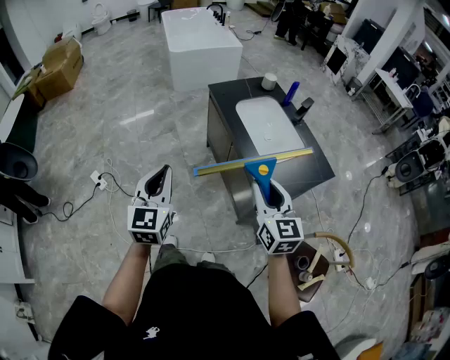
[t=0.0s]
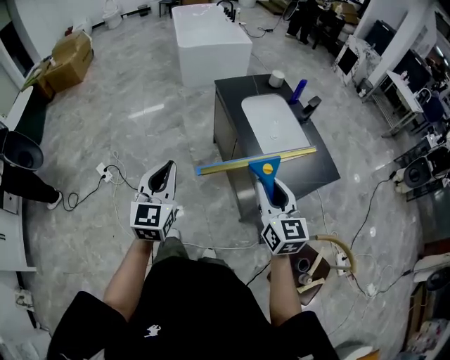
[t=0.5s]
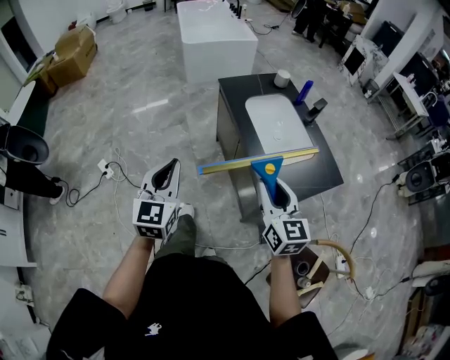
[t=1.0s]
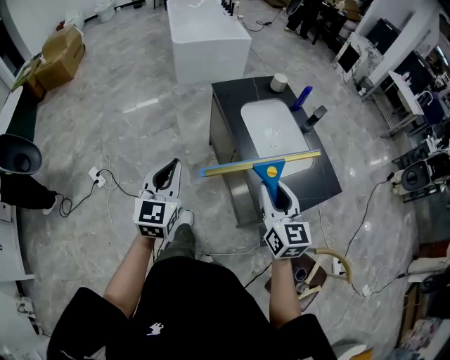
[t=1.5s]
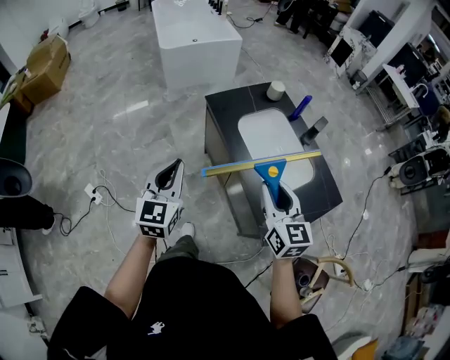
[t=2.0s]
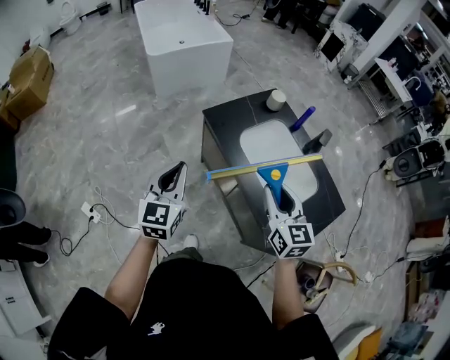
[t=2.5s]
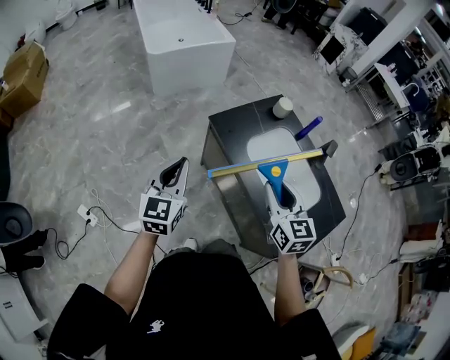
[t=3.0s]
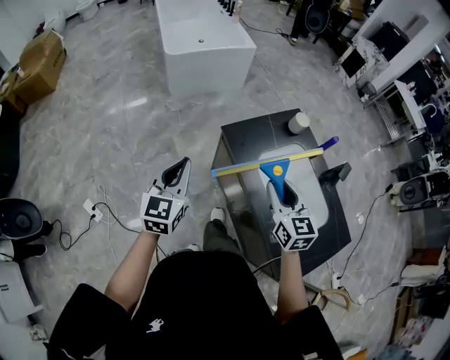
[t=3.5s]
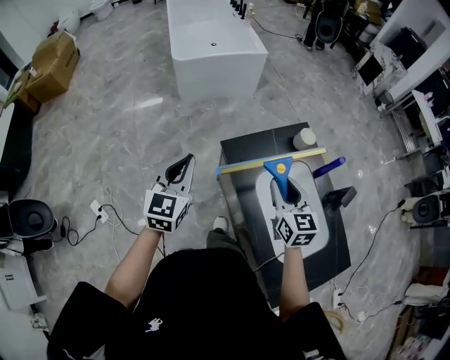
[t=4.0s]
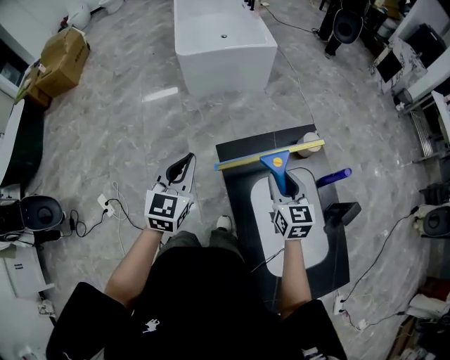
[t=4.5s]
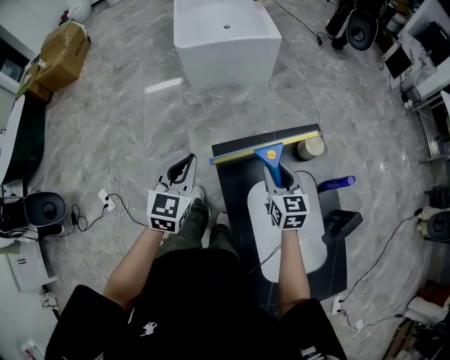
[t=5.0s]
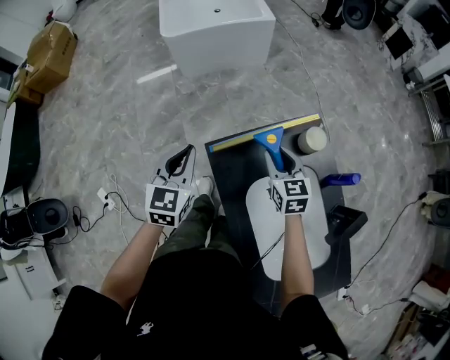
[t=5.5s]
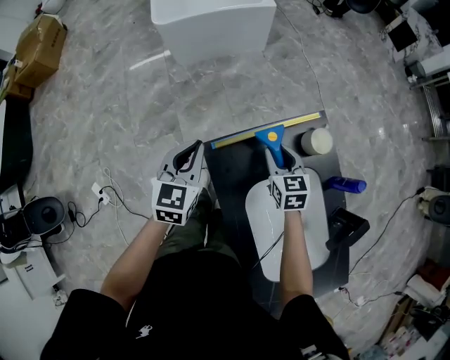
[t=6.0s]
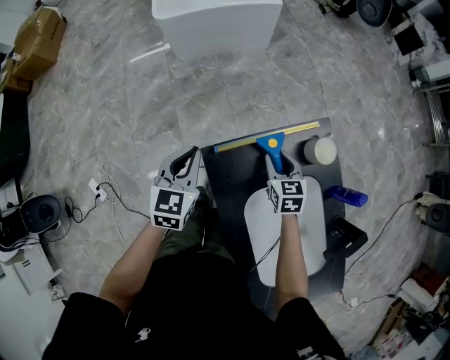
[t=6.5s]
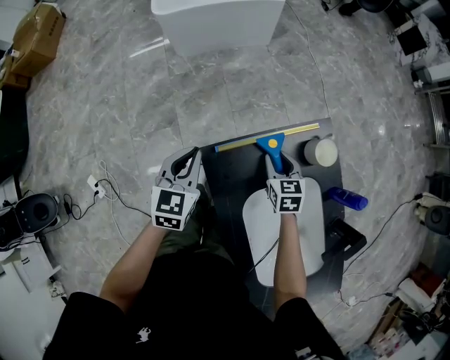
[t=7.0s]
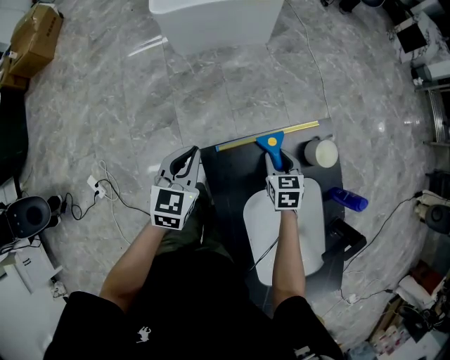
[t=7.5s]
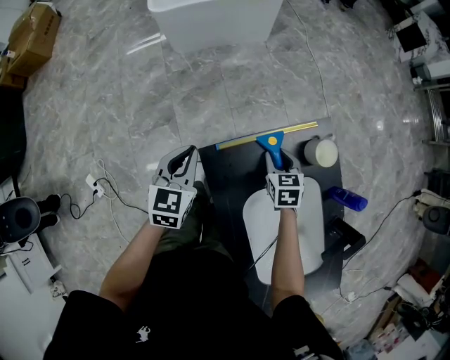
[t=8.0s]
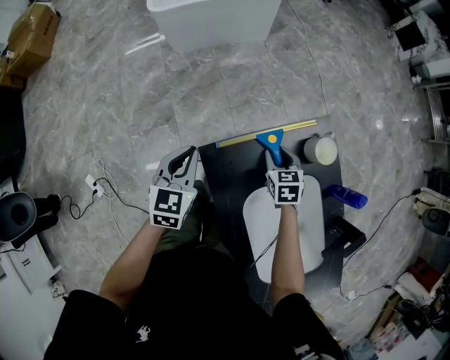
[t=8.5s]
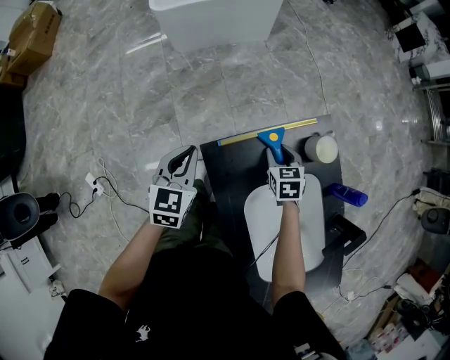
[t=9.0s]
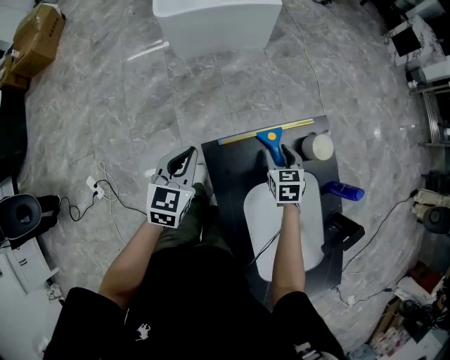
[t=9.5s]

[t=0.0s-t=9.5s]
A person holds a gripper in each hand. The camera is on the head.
t=0.0s to t=2.0s: Both grippers move forward, approximately 20 cm.
t=2.0s to t=4.0s: Both grippers move forward, roughly 30 cm.
t=4.0s to t=5.5s: The right gripper heads forward and downward, covering some 25 cm. The left gripper is displaced forward, downward and to the right by some 20 cm.
t=5.5s to t=7.5s: The left gripper goes about 10 cm downward and forward, while the right gripper moves downward, roughly 10 cm.
t=7.5s to t=9.5s: The grippers move only a little.

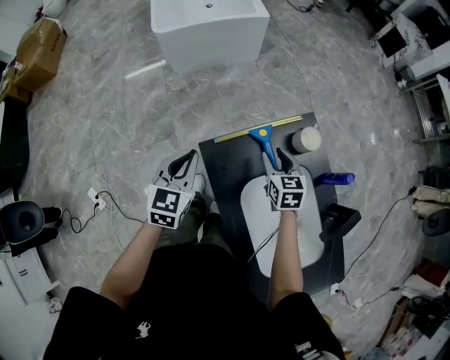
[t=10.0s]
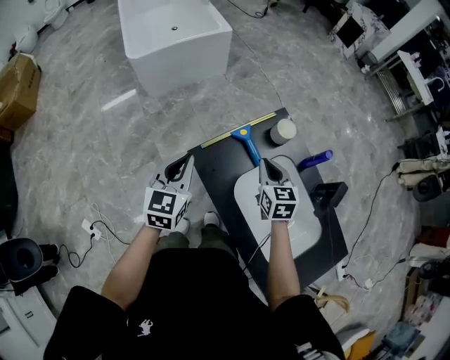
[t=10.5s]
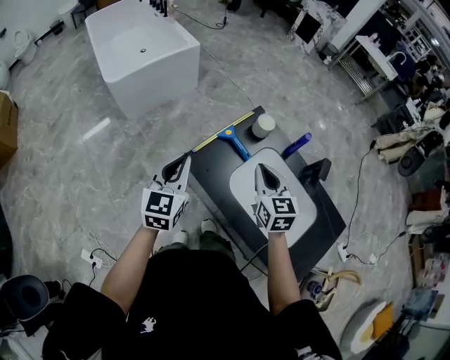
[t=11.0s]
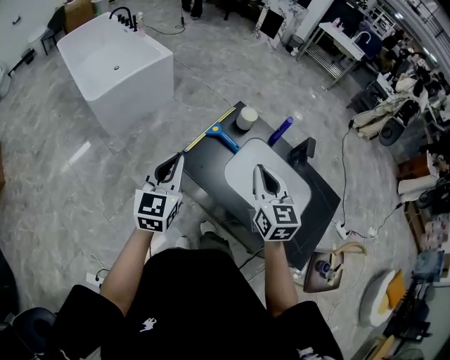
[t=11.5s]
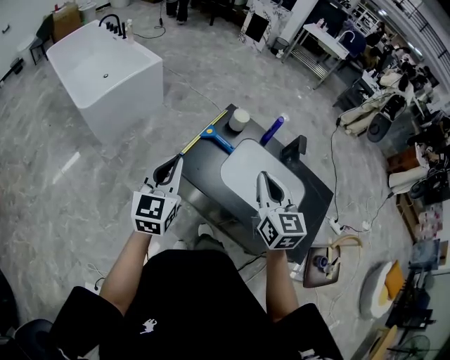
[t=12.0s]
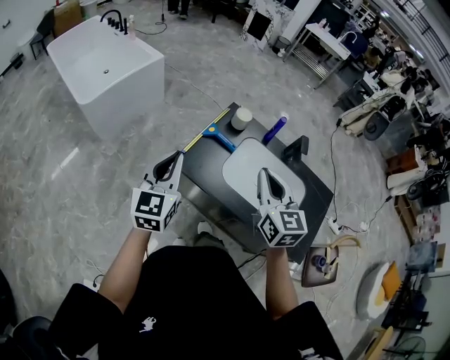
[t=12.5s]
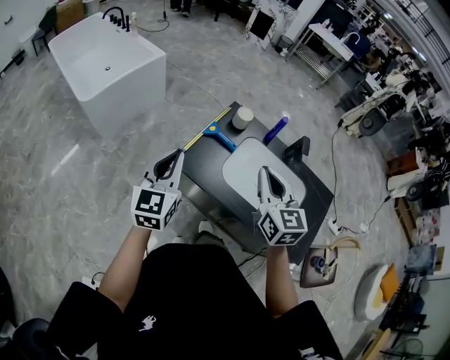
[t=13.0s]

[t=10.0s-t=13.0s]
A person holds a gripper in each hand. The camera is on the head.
t=10.0s to t=11.5s: The left gripper travels upward by approximately 15 cm, and rotates approximately 30 degrees. The right gripper is displaced upward by about 25 cm, rotates roughly 40 degrees, and closes its fingers.
t=11.5s to t=13.0s: The grippers make only small movements.

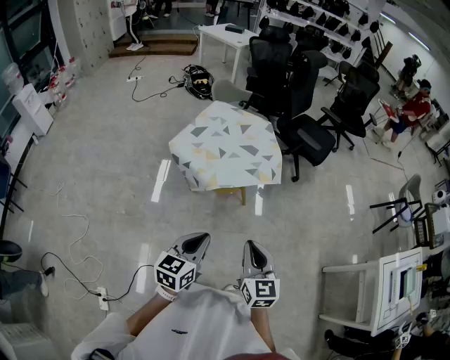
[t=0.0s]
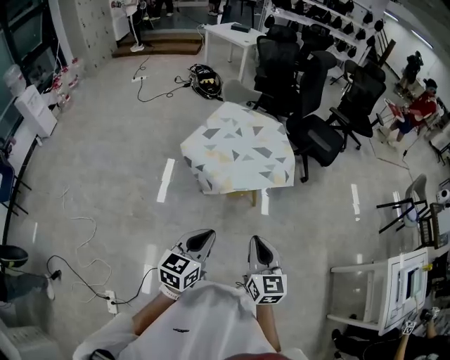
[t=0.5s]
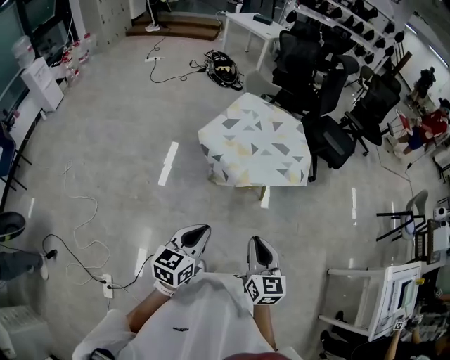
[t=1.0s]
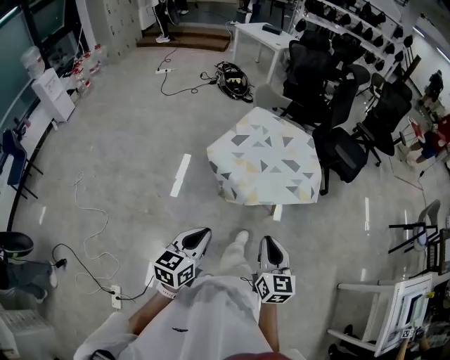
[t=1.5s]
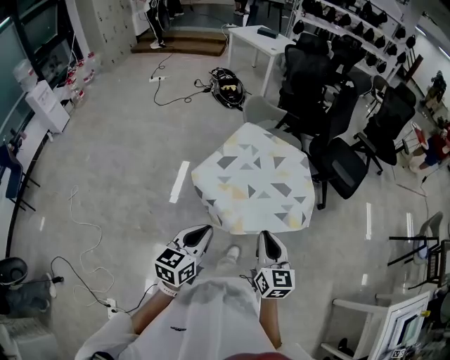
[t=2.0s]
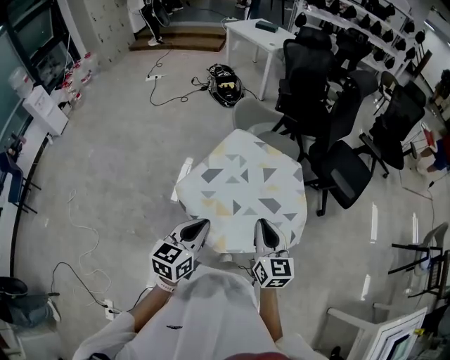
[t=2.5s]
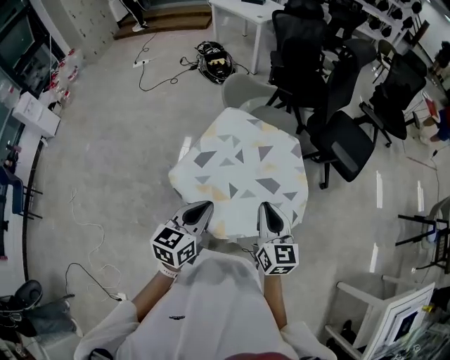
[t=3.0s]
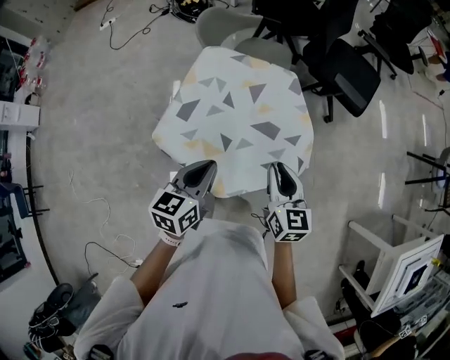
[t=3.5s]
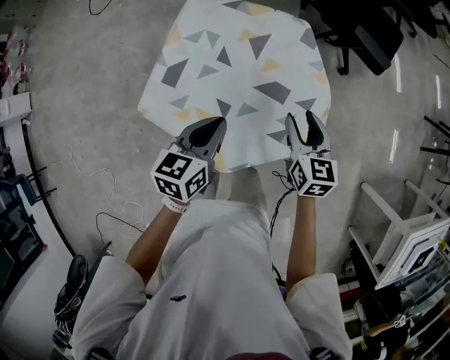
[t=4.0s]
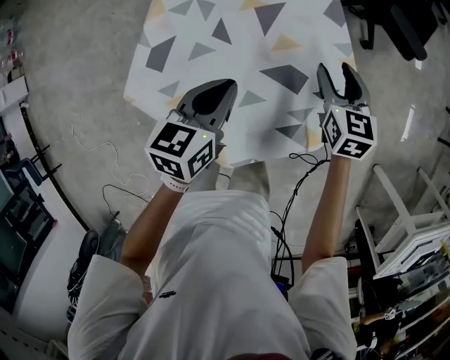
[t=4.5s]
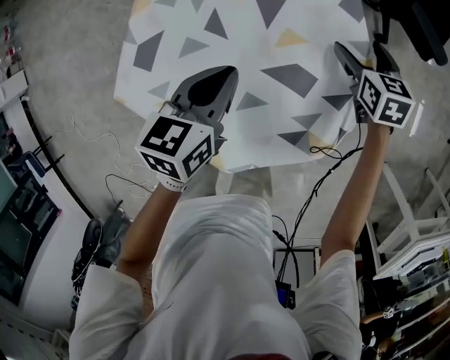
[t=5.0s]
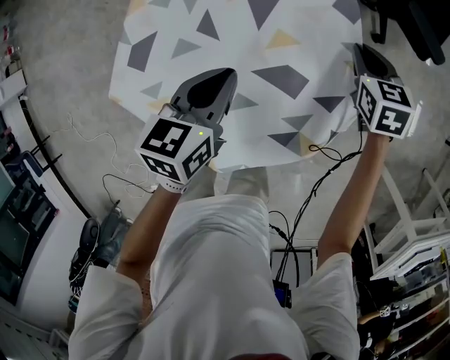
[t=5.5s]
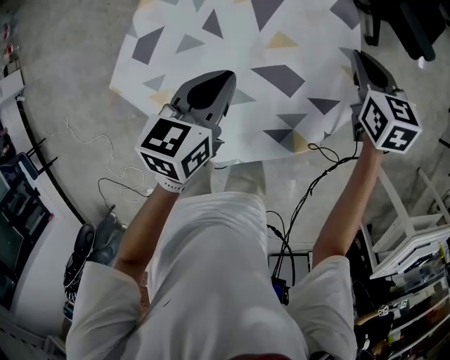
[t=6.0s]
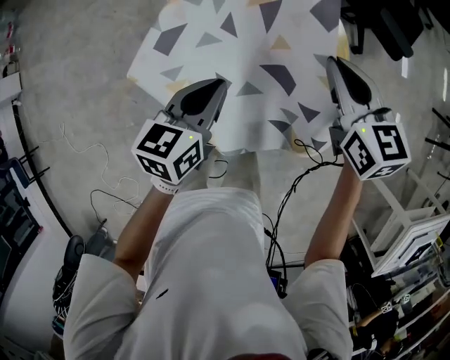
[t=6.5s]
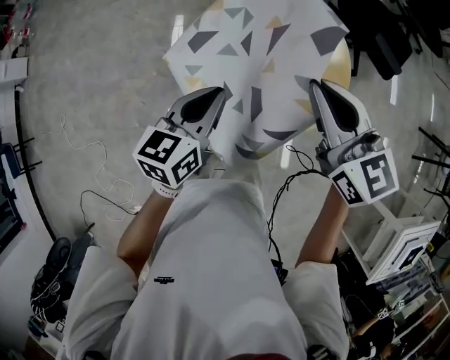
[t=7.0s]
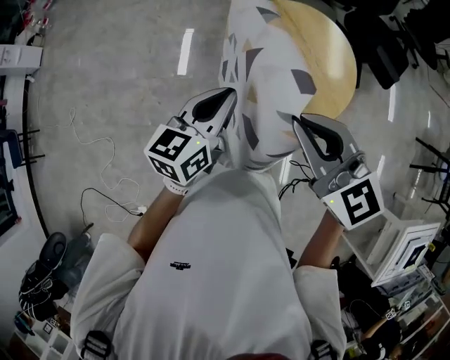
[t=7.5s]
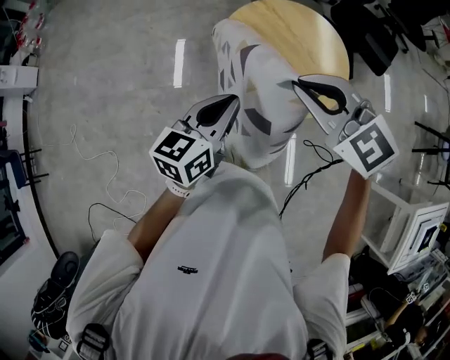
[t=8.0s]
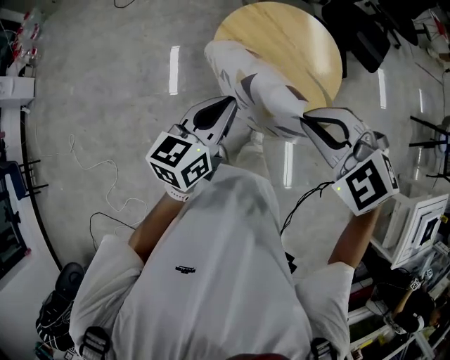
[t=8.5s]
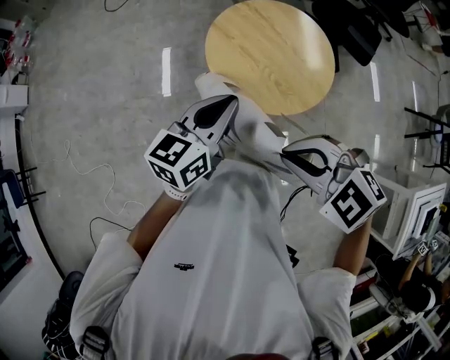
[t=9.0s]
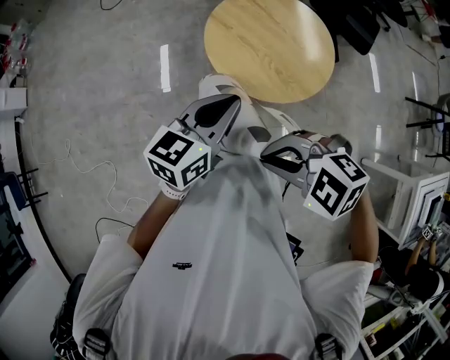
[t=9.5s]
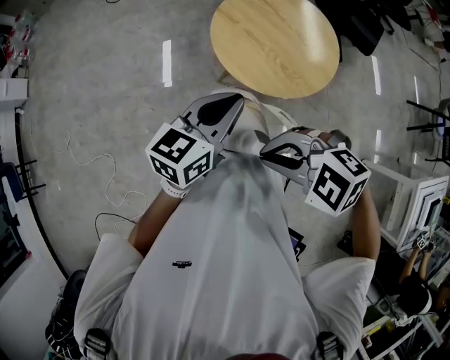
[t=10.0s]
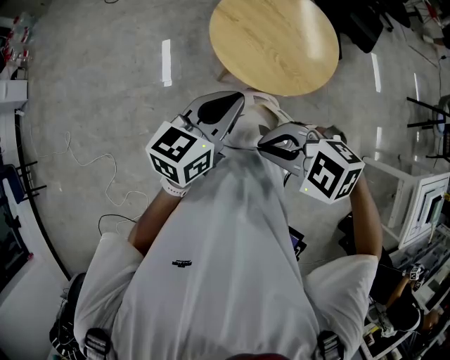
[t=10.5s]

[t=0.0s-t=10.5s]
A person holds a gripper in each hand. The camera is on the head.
t=0.0s to t=2.0s: The right gripper shifts about 25 cm forward. Meanwhile the left gripper heads forward and to the left, covering about 25 cm.
t=2.0s to t=4.0s: The grippers both shift forward, downward and to the right by roughly 35 cm. The left gripper changes its angle by about 20 degrees; the right gripper changes its angle by some 20 degrees, and opens its fingers.
t=4.0s to t=6.5s: The right gripper heads forward, covering approximately 5 cm, moves roughly 20 cm downward and comes back, and closes its fingers; the left gripper travels downward and back again, approximately 10 cm each way.
t=6.5s to t=8.5s: Both grippers travel together to the left, backward and upward, about 40 cm. The right gripper rotates around the line of its fingers by roughly 50 degrees, counterclockwise from behind.
t=8.5s to t=10.5s: The left gripper shifts by approximately 5 cm. Meanwhile the right gripper ends up roughly 20 cm from where it was, and swivels about 20 degrees.

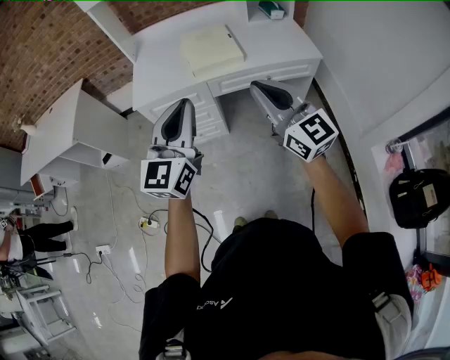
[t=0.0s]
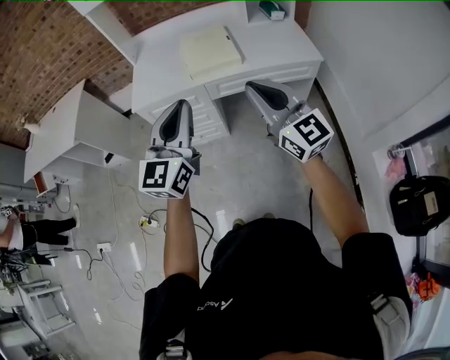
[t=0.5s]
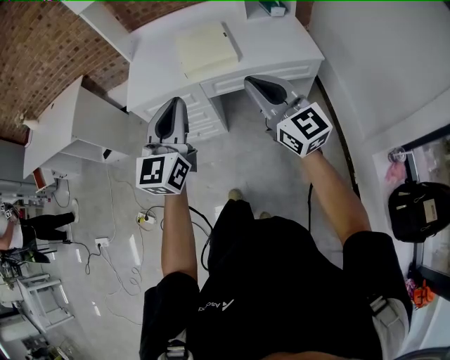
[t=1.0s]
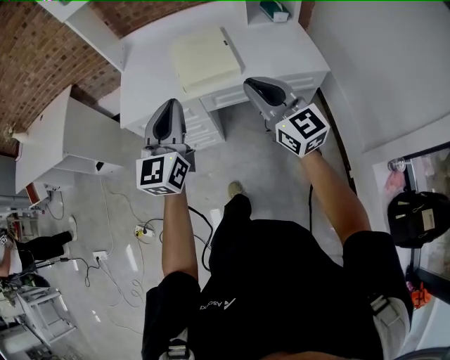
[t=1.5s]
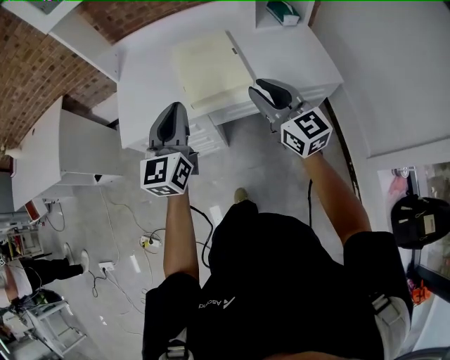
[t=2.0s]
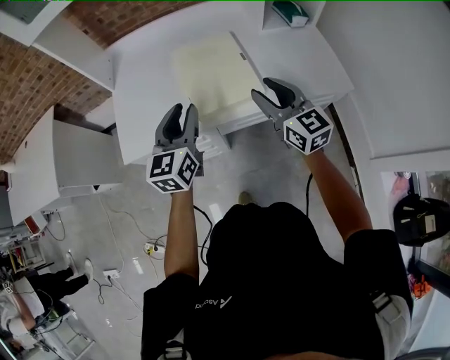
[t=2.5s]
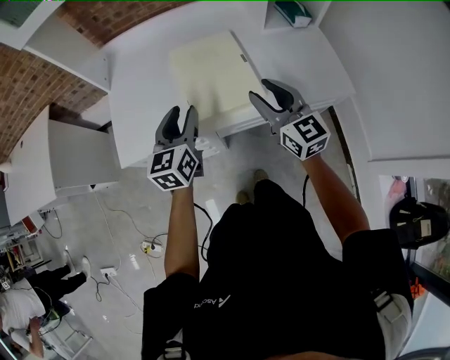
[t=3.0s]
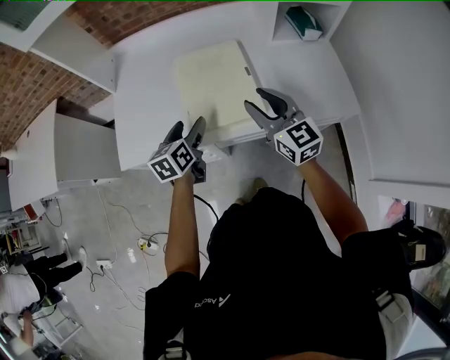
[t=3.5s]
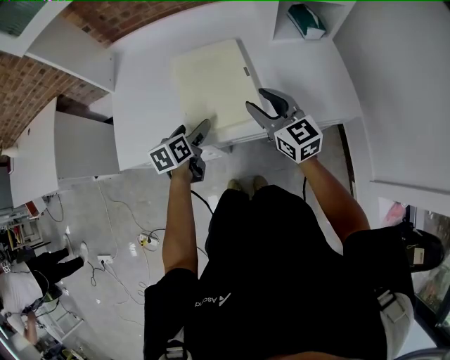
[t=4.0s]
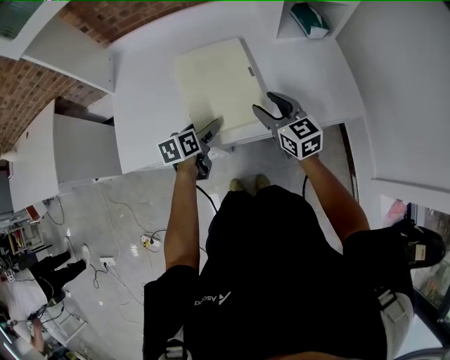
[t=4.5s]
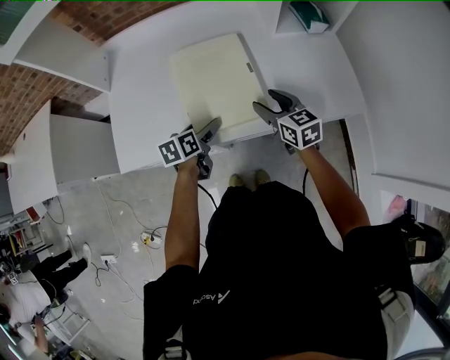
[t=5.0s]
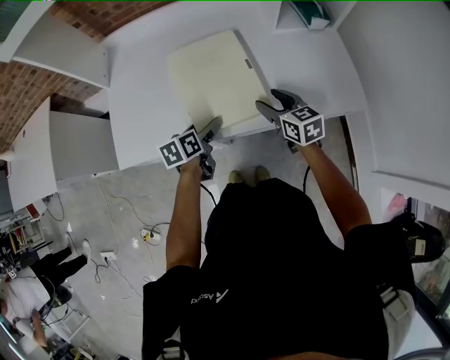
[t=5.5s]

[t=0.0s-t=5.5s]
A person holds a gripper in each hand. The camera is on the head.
t=0.0s to t=2.0s: The two grippers go some 30 cm forward.
t=2.0s to t=3.5s: The right gripper shifts roughly 20 cm forward and downward, while the left gripper travels downward and forward by about 25 cm, swivels roughly 40 degrees, and opens its fingers.
t=3.5s to t=5.5s: The right gripper is displaced downward by some 15 cm, and rotates some 30 degrees; the left gripper goes approximately 10 cm downward, and changes its angle by approximately 20 degrees.
